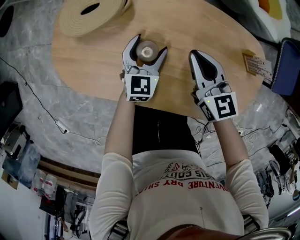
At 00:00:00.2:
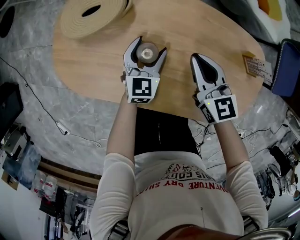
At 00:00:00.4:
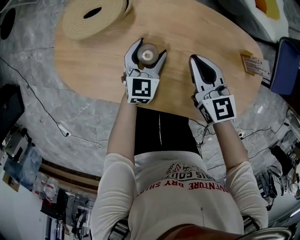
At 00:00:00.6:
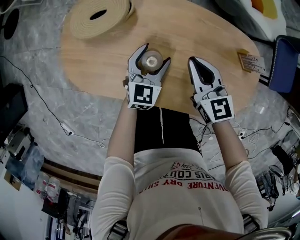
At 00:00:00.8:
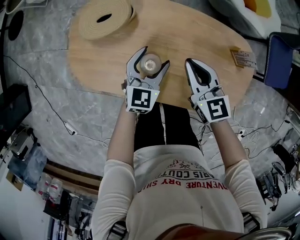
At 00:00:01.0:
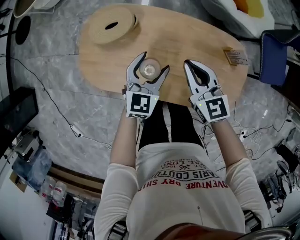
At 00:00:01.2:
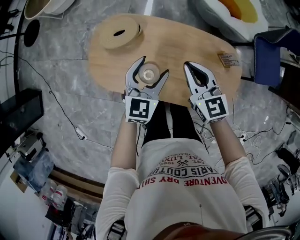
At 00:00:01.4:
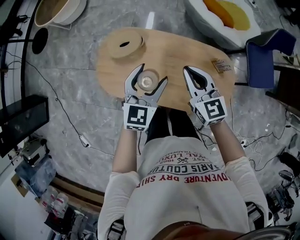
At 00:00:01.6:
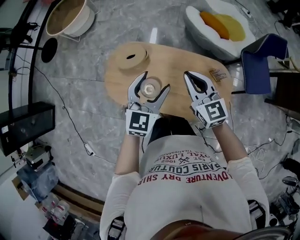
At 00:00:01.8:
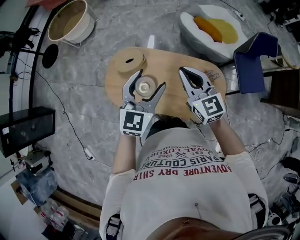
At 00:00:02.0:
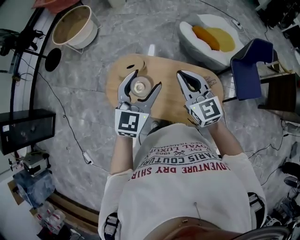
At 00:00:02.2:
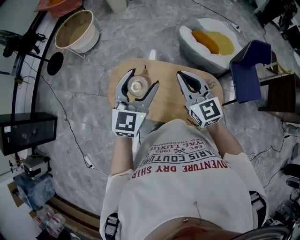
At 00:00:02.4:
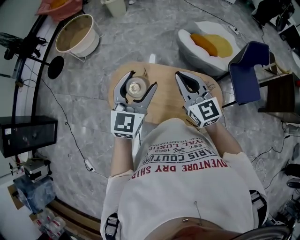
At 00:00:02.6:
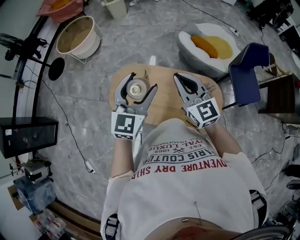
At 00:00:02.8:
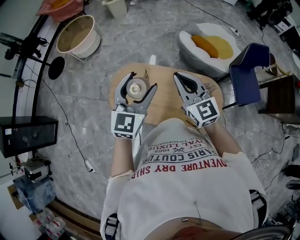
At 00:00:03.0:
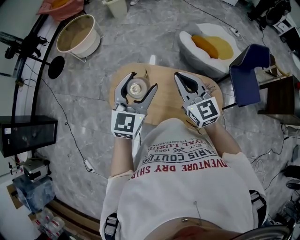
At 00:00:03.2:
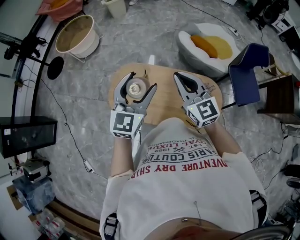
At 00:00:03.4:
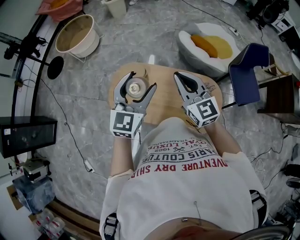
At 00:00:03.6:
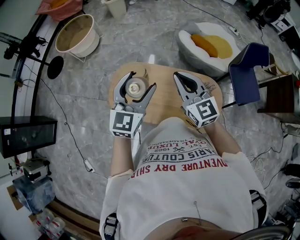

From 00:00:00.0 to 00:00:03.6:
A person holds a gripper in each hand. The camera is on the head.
From 00:00:00.0 to 00:00:01.8: The two grippers go approximately 50 cm upward.
From 00:00:01.8 to 00:00:03.6: The grippers both shift upward by approximately 5 cm.

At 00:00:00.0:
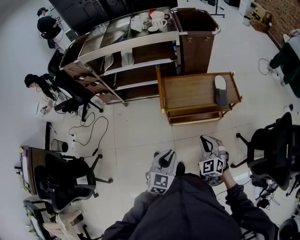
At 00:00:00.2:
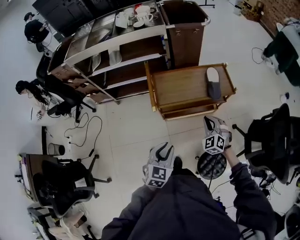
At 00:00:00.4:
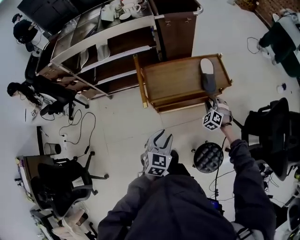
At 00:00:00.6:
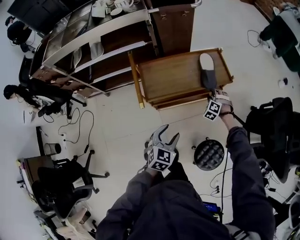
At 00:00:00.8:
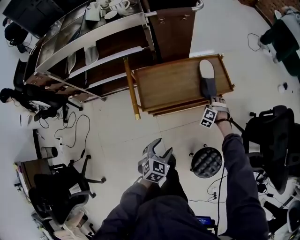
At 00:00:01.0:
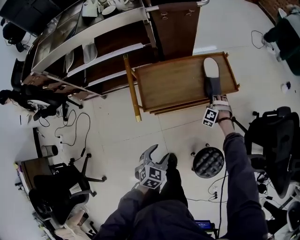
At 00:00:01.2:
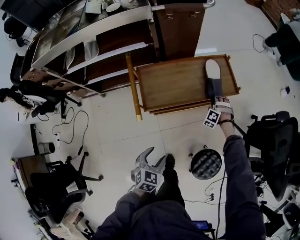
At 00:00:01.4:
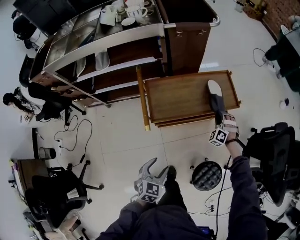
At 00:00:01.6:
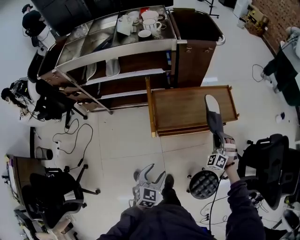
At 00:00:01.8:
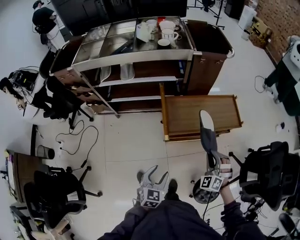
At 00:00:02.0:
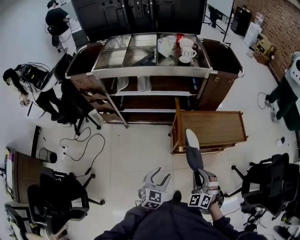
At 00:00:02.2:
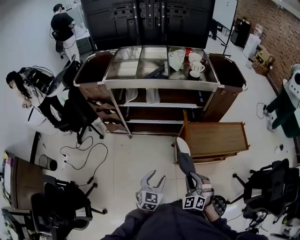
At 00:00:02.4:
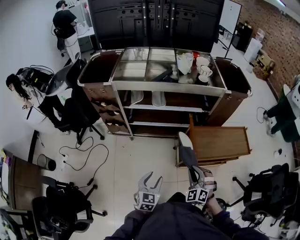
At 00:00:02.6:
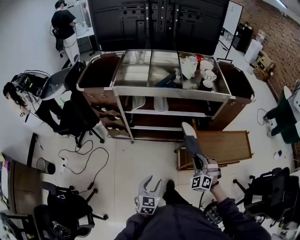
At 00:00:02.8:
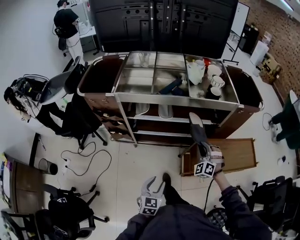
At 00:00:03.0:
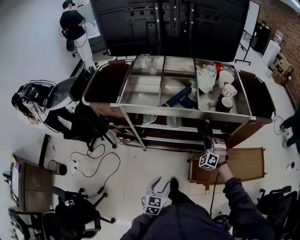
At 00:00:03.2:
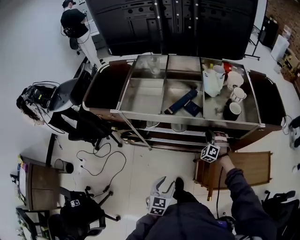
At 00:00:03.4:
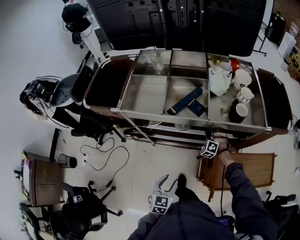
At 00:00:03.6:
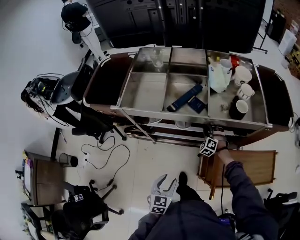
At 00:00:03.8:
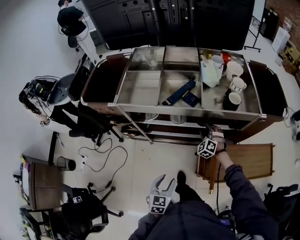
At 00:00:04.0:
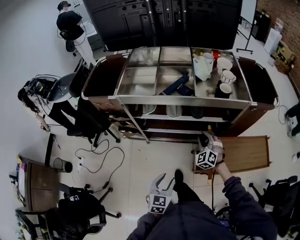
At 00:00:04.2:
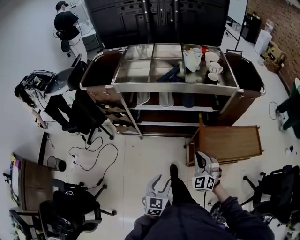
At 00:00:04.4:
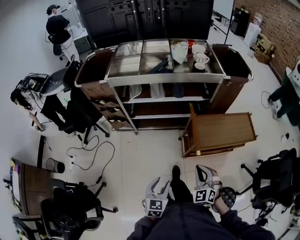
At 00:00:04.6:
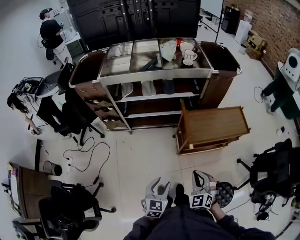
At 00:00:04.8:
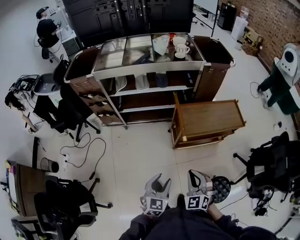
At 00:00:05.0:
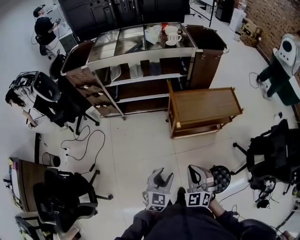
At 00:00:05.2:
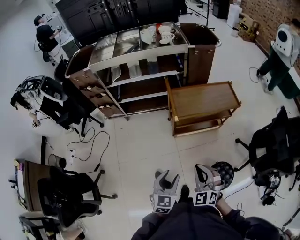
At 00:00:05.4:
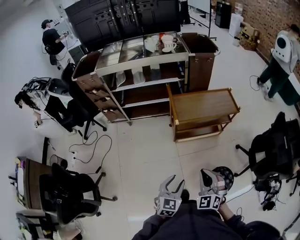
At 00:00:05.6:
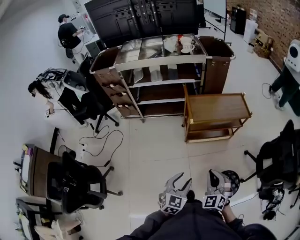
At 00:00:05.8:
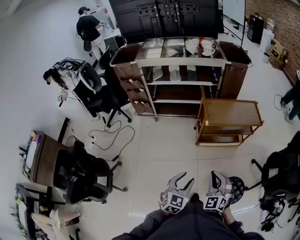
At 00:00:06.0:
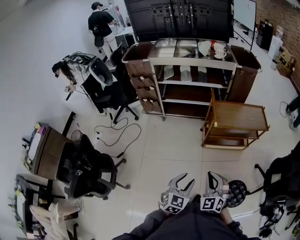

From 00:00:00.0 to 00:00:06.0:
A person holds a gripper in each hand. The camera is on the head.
From 00:00:00.0 to 00:00:01.6: The left gripper opens up; the right gripper moves roughly 30 cm downward and comes back, changes its angle by some 30 degrees, and opens and closes again.
From 00:00:01.6 to 00:00:03.0: Both grippers are carried to the left and forward, about 50 cm.
From 00:00:03.0 to 00:00:04.4: The left gripper moves backward, approximately 20 cm, while the right gripper moves backward, roughly 40 cm, changes its angle by some 30 degrees, and opens and closes again.
From 00:00:04.4 to 00:00:06.0: The right gripper goes approximately 30 cm backward, while the left gripper shifts approximately 30 cm backward and to the right.

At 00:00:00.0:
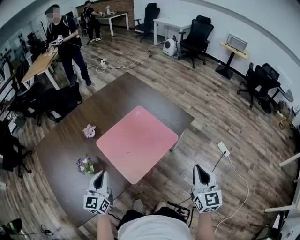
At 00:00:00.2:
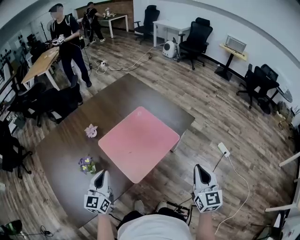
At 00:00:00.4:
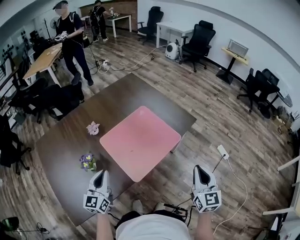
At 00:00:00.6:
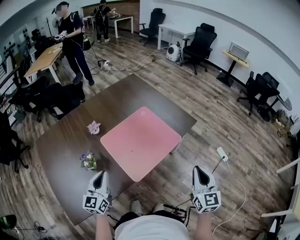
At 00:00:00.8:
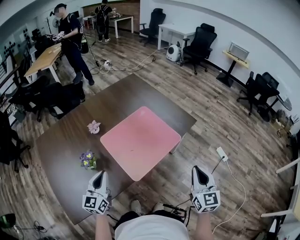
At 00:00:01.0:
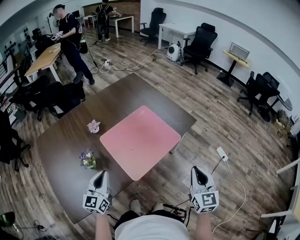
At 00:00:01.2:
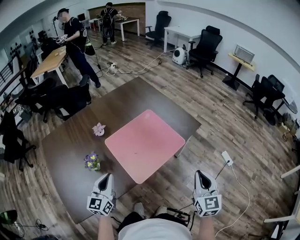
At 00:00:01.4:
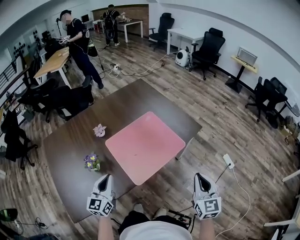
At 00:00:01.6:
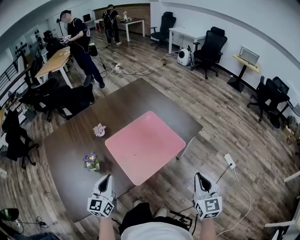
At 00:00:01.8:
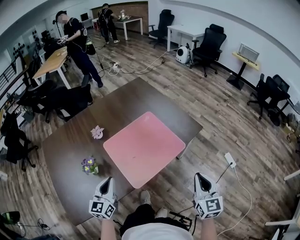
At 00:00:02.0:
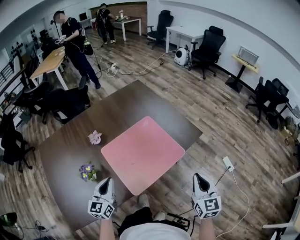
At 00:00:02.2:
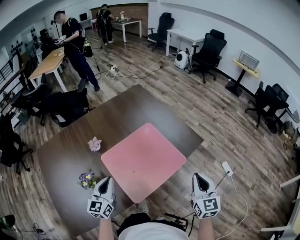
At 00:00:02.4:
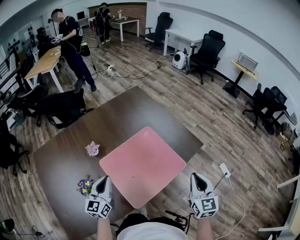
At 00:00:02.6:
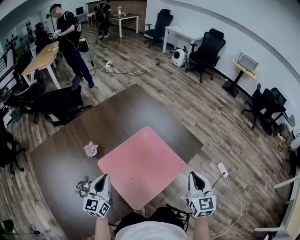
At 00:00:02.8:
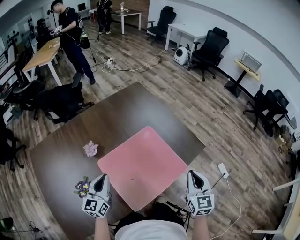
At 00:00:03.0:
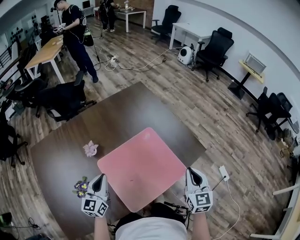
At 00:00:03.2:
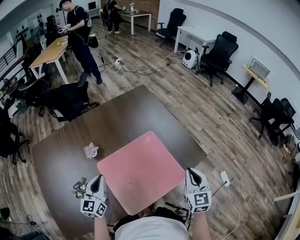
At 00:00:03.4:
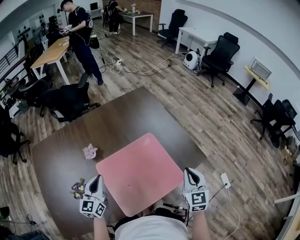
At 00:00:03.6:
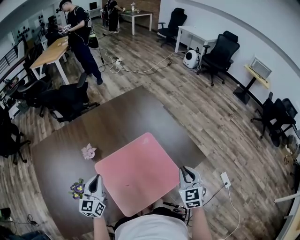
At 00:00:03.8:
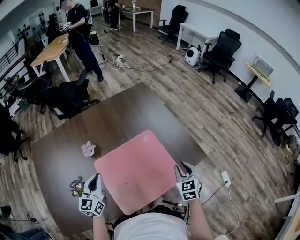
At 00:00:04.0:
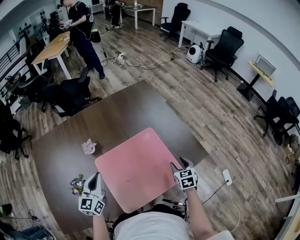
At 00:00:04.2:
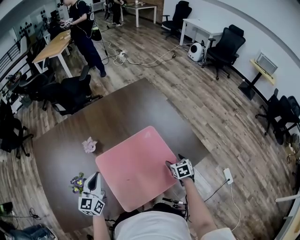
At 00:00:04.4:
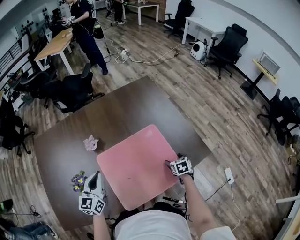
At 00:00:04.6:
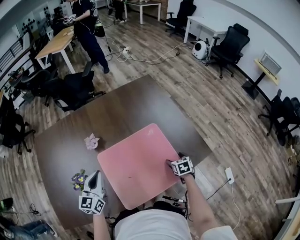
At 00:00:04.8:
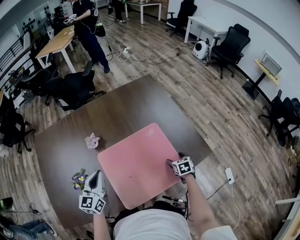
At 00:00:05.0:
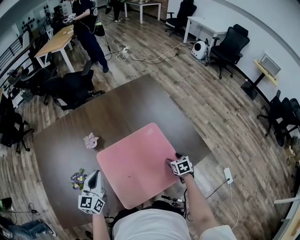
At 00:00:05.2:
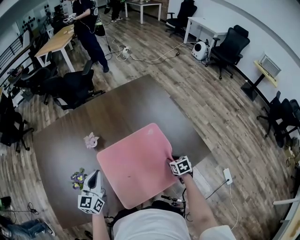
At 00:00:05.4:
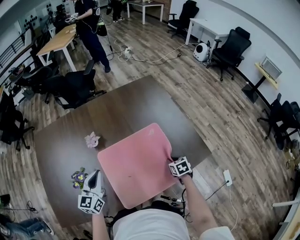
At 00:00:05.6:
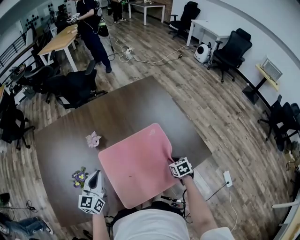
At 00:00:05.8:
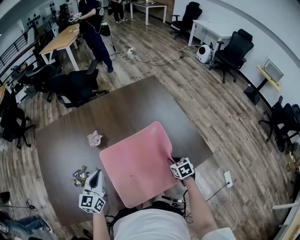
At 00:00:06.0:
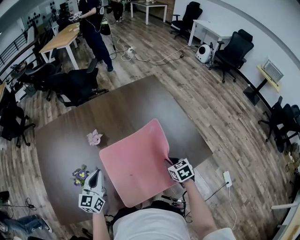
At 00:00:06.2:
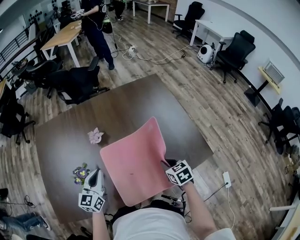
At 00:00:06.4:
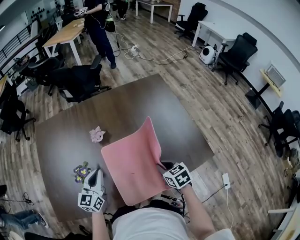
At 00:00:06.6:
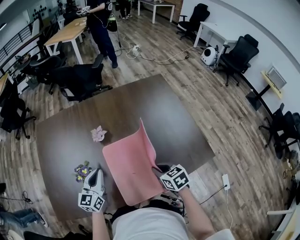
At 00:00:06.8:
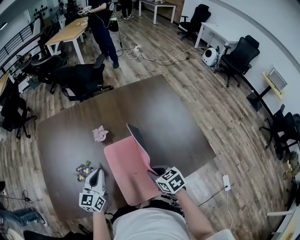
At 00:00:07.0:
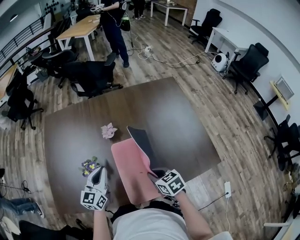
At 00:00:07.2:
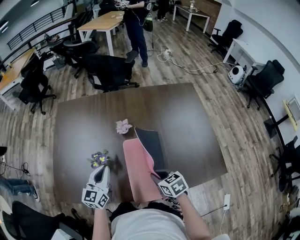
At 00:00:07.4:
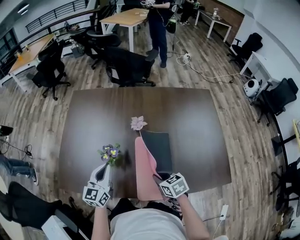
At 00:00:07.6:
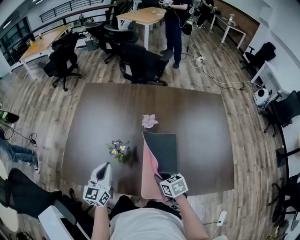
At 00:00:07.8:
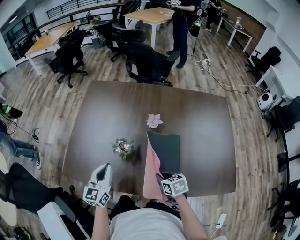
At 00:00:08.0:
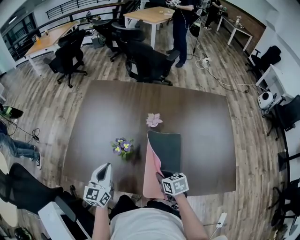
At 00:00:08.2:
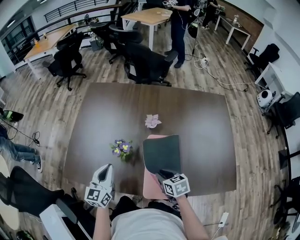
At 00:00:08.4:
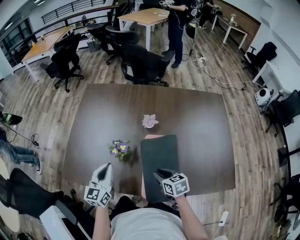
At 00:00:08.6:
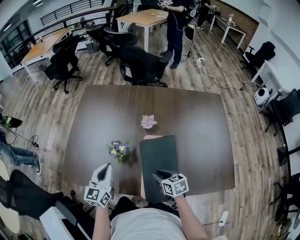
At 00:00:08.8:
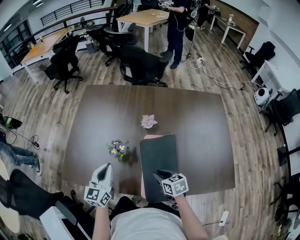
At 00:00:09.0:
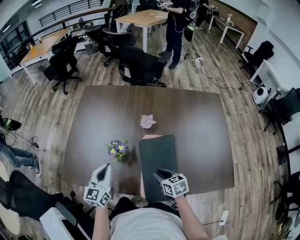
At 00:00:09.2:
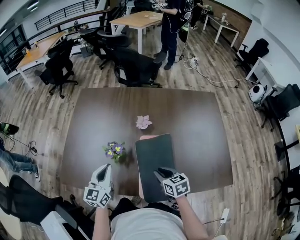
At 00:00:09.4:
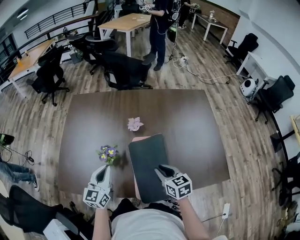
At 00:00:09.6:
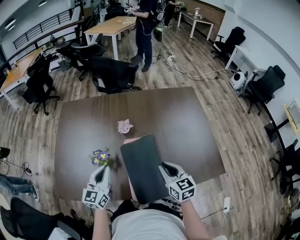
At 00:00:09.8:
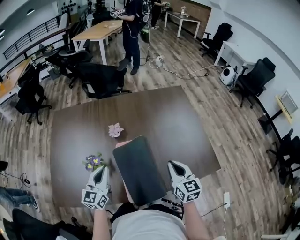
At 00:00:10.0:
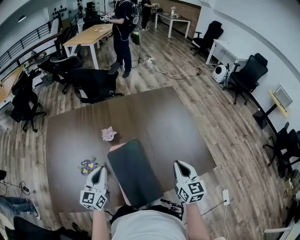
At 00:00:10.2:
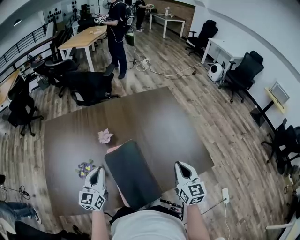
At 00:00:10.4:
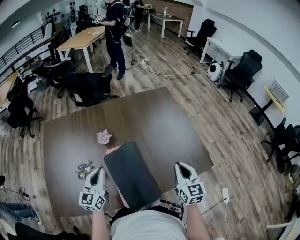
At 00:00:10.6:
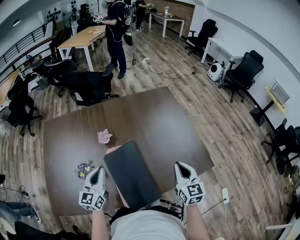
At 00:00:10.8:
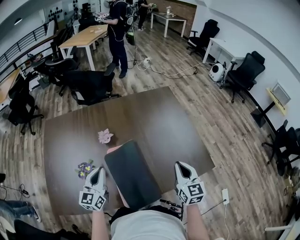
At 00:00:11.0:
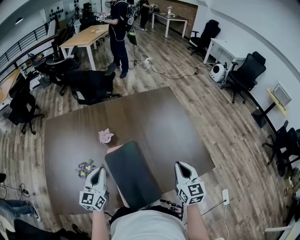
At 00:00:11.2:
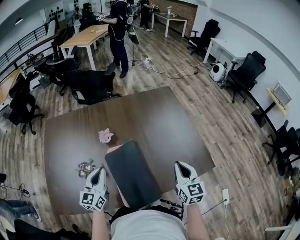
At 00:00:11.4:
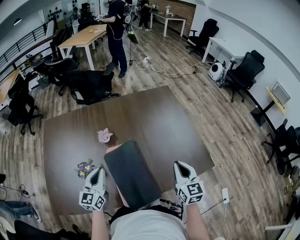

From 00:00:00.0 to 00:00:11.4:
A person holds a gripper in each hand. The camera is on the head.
From 00:00:00.0 to 00:00:01.4: The grippers make only small movements.
From 00:00:01.4 to 00:00:02.8: Both grippers move forward, some 20 cm.
From 00:00:02.8 to 00:00:04.2: The right gripper heads downward and forward, covering roughly 30 cm, tilts its fingers some 40 degrees downward, and opens up.
From 00:00:04.2 to 00:00:05.6: The right gripper closes its fingers.
From 00:00:05.6 to 00:00:07.2: The left gripper ends up some 10 cm from where it was; the right gripper shifts by some 25 cm, and rotates some 30 degrees.
From 00:00:07.2 to 00:00:08.6: The two grippers go some 5 cm to the left.
From 00:00:08.6 to 00:00:10.0: The right gripper moves about 30 cm, and rotates about 50 degrees; the left gripper ends up approximately 15 cm from where it was.
From 00:00:10.0 to 00:00:11.4: The grippers stay close to where they were, moving slightly.

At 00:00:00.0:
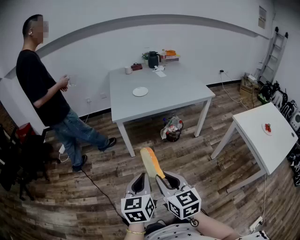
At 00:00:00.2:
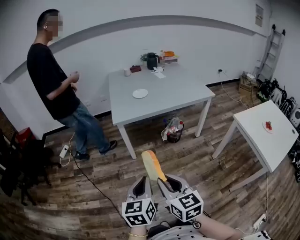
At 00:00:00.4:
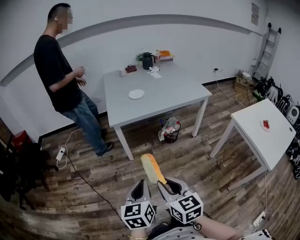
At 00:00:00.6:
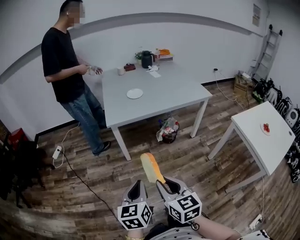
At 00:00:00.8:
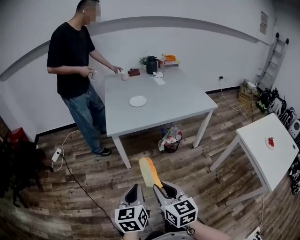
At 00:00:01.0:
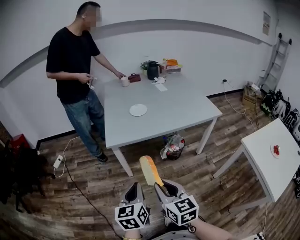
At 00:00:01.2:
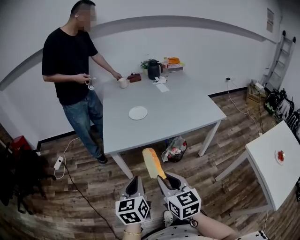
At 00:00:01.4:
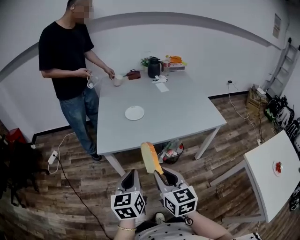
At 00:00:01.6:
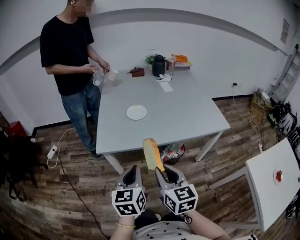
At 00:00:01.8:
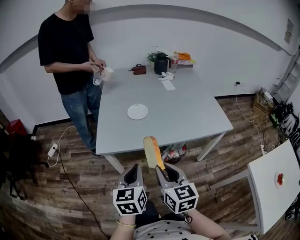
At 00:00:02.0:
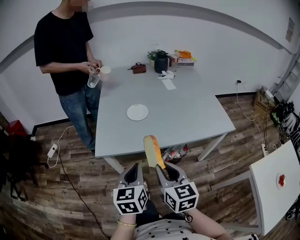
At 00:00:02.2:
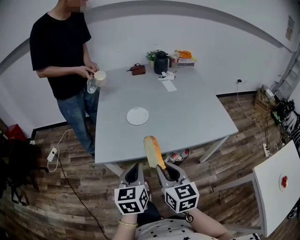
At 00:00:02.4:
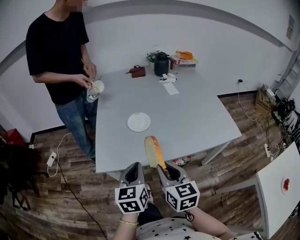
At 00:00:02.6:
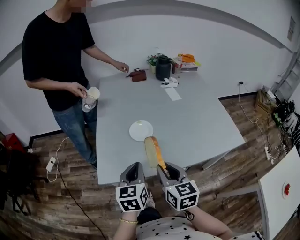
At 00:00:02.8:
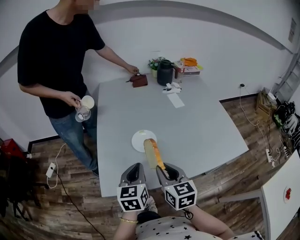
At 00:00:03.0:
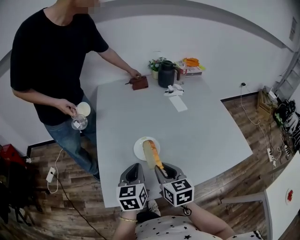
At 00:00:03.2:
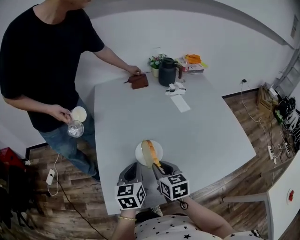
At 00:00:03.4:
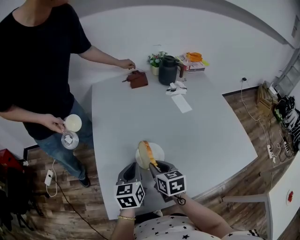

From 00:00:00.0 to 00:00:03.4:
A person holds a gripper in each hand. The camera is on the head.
From 00:00:00.0 to 00:00:01.6: The grippers both shift forward by approximately 35 cm.
From 00:00:01.6 to 00:00:03.4: The two grippers travel together, forward, roughly 50 cm. The right gripper rotates about 20 degrees.
